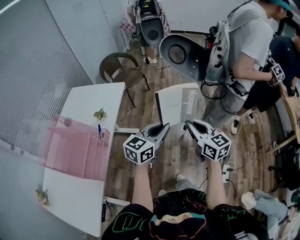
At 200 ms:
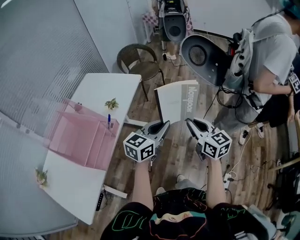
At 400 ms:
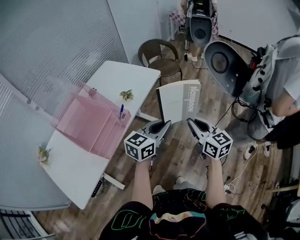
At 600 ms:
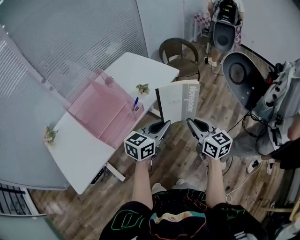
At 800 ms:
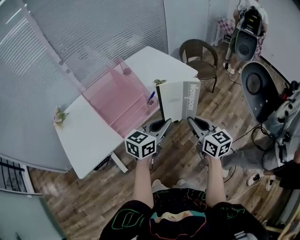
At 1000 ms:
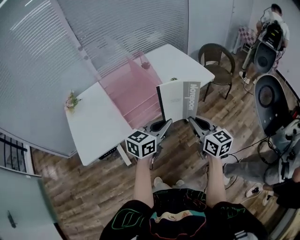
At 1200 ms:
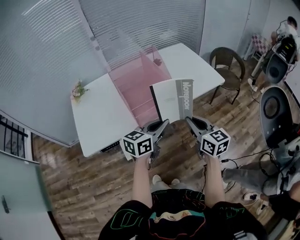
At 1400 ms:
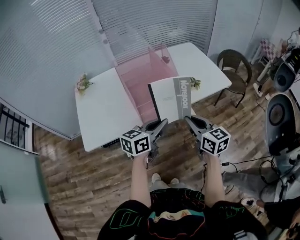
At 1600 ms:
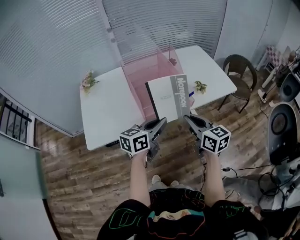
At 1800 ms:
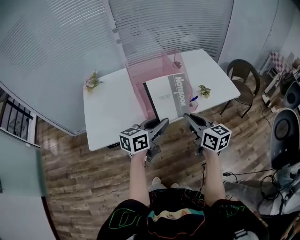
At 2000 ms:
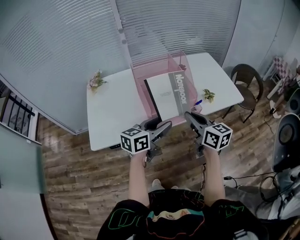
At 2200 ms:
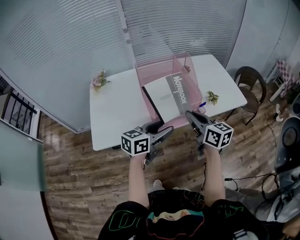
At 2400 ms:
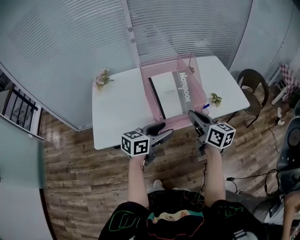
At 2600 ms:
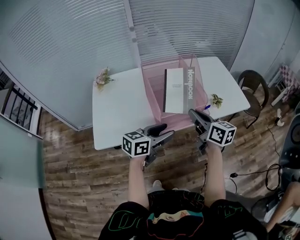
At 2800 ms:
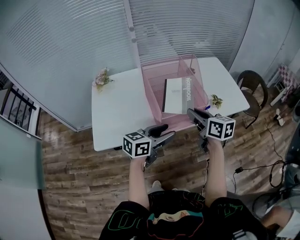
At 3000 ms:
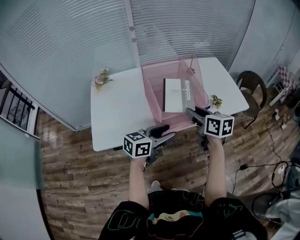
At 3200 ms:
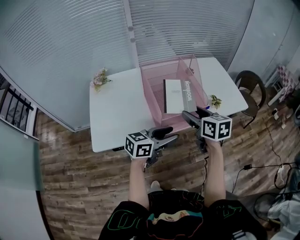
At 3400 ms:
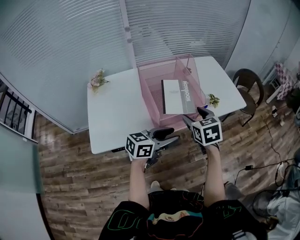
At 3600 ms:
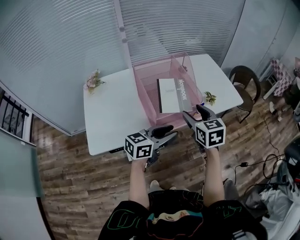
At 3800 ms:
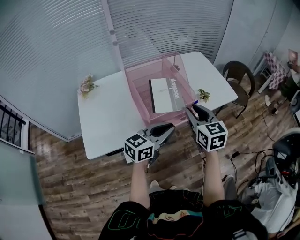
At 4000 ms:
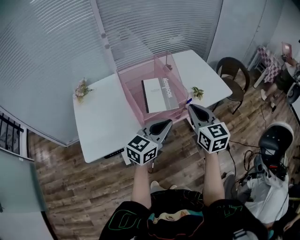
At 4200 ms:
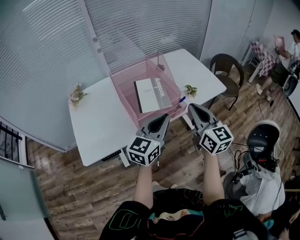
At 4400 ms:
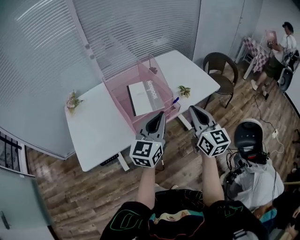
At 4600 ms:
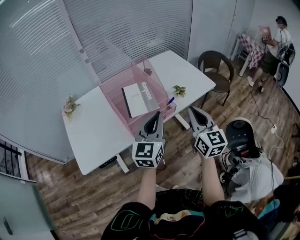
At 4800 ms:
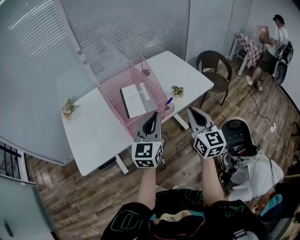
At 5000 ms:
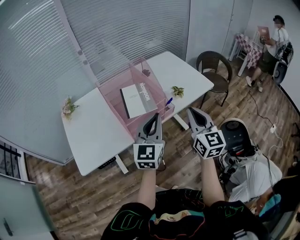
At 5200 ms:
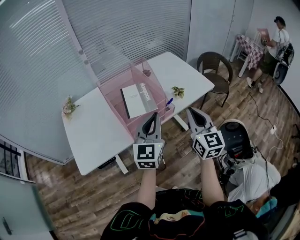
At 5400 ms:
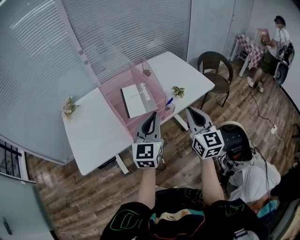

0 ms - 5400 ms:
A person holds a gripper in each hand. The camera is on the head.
0 ms - 1400 ms: The left gripper shifts by about 35 cm, and turns by some 60 degrees, while the right gripper changes place by roughly 35 cm, and changes its angle by approximately 60 degrees.
1400 ms - 2800 ms: The left gripper moves to the left, some 10 cm, and opens its fingers, while the right gripper is displaced forward and to the left by approximately 15 cm.
2800 ms - 4000 ms: The left gripper goes approximately 5 cm upward and to the right, and closes. The right gripper goes approximately 5 cm to the right, rotates approximately 30 degrees, and opens, then closes again.
4000 ms - 5400 ms: The right gripper goes approximately 10 cm to the right, while the left gripper turns by roughly 30 degrees.

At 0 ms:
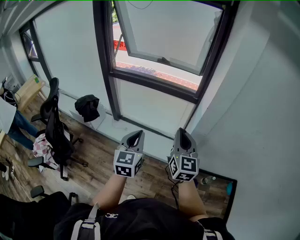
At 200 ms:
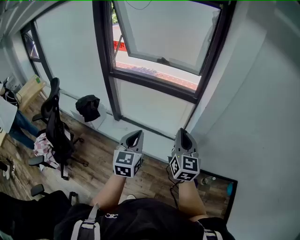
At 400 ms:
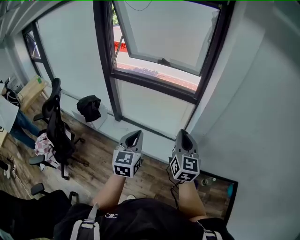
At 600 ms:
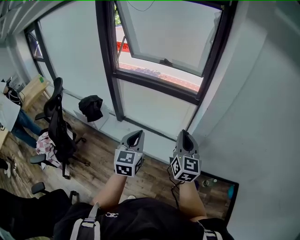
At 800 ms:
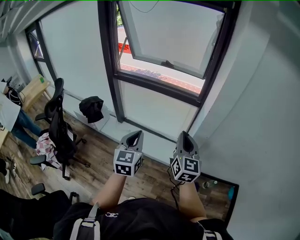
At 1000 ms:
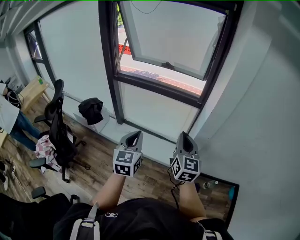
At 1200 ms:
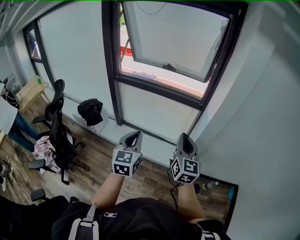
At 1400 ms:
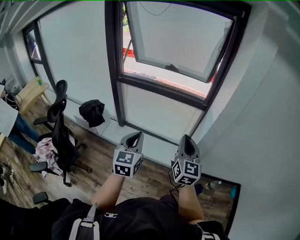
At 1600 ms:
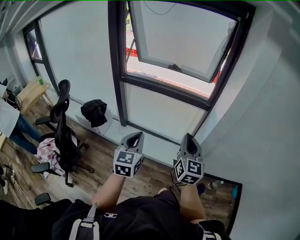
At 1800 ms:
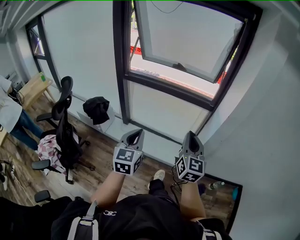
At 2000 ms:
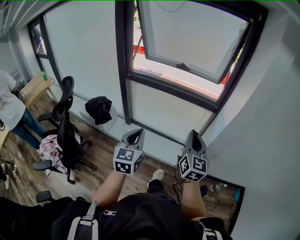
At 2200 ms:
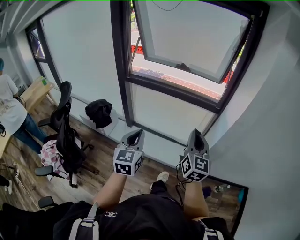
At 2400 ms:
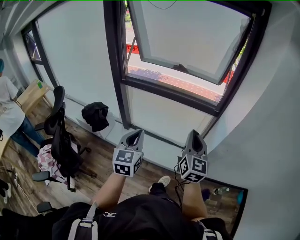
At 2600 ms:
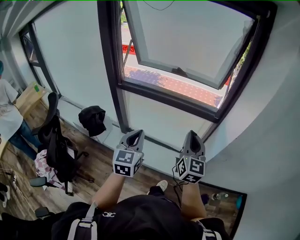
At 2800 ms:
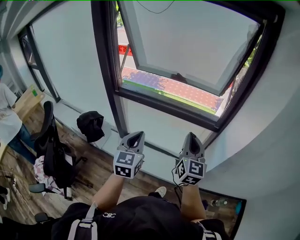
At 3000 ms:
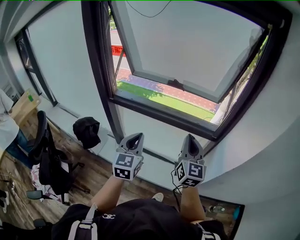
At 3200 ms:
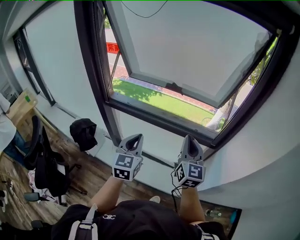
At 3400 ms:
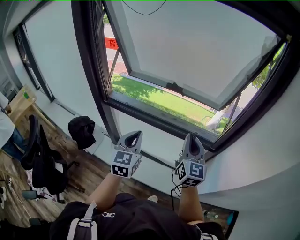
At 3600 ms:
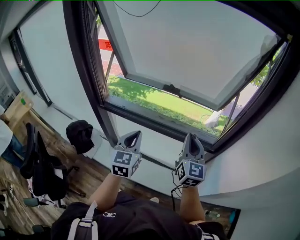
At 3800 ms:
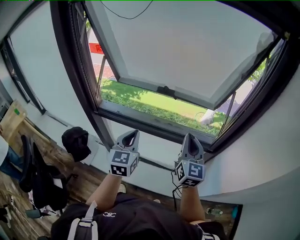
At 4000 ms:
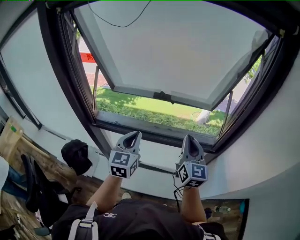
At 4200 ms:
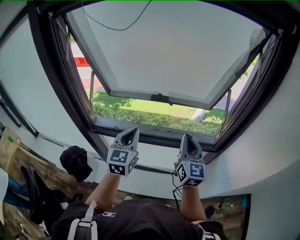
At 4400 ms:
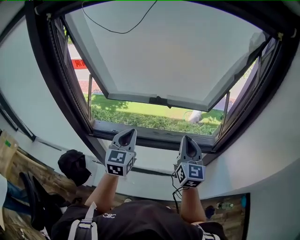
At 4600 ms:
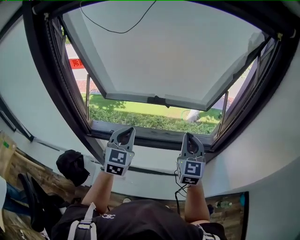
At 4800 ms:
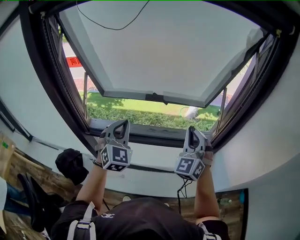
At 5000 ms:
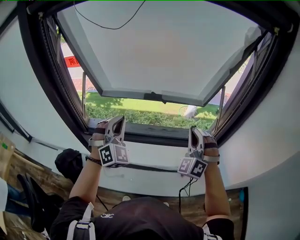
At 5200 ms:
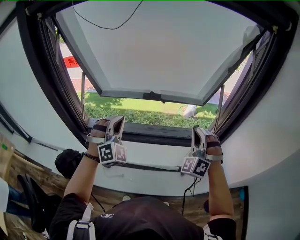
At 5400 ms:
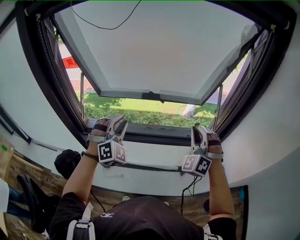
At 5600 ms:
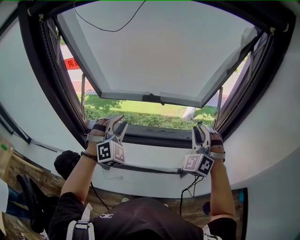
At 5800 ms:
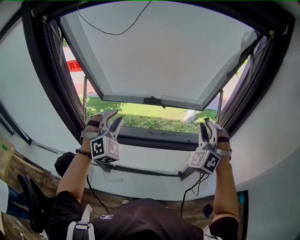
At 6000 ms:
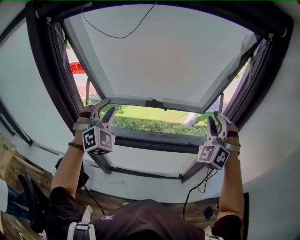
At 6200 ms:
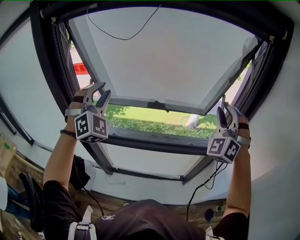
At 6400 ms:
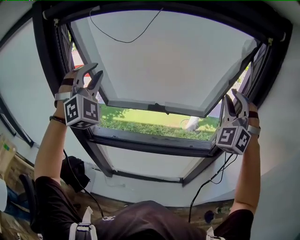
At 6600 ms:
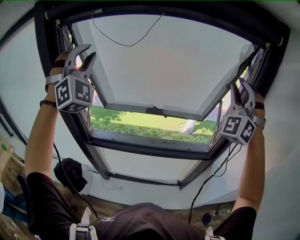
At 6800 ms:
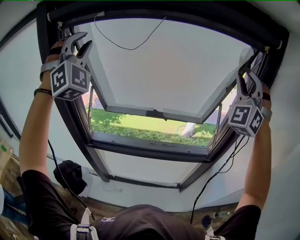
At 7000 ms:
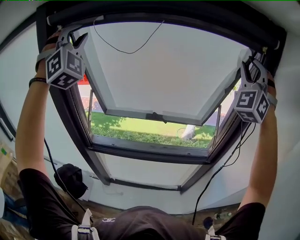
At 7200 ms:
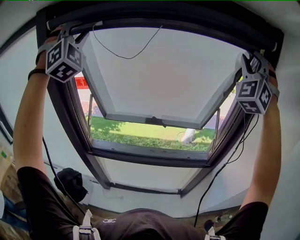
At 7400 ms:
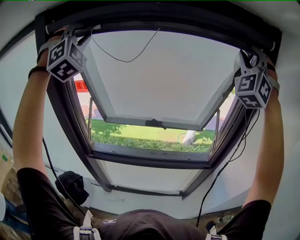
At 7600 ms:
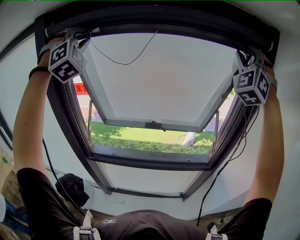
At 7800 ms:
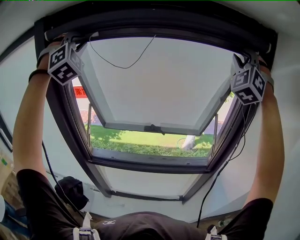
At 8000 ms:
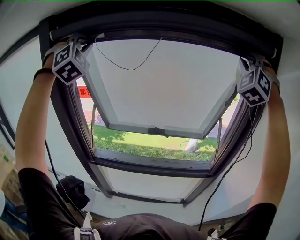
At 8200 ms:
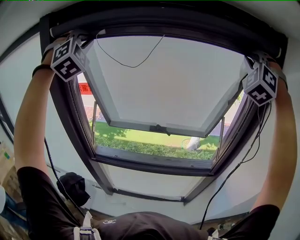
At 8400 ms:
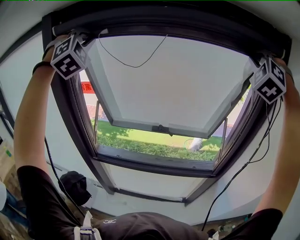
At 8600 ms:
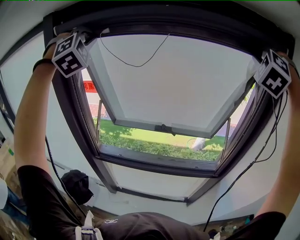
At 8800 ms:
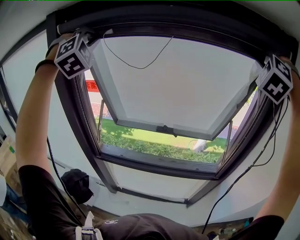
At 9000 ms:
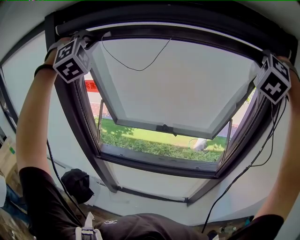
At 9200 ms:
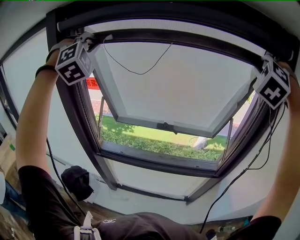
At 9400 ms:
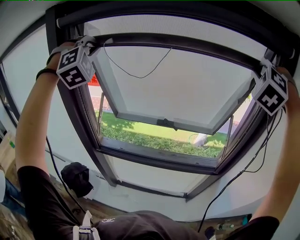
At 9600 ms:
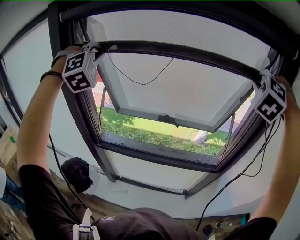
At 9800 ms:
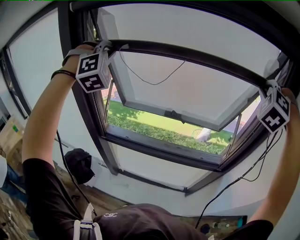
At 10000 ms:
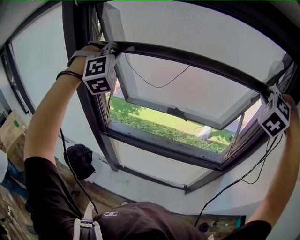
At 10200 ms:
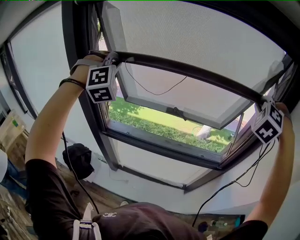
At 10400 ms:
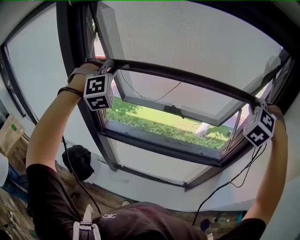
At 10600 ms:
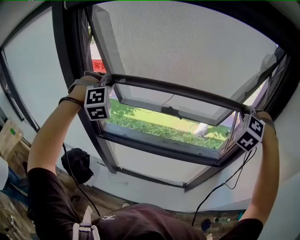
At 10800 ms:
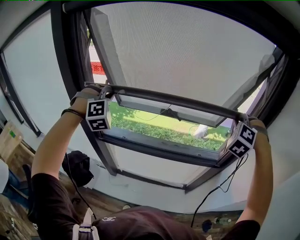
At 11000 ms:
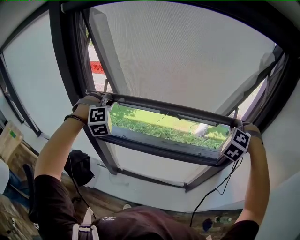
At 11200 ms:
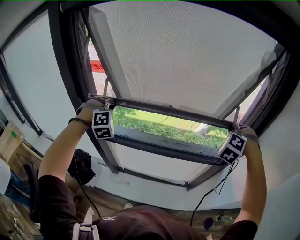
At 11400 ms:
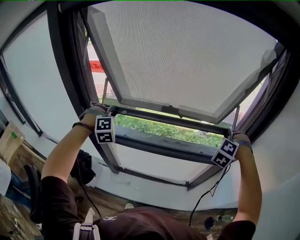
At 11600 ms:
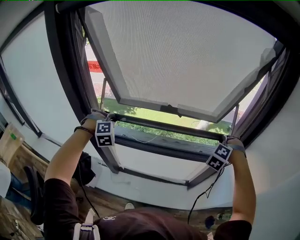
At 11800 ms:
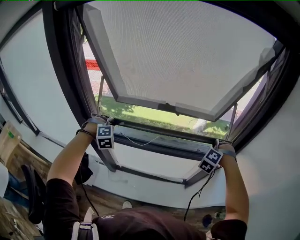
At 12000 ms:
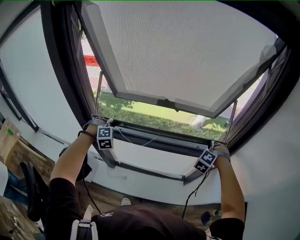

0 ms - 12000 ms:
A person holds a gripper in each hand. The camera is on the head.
0 ms - 1600 ms: Both grippers move to the left, approximately 10 cm.
1600 ms - 3000 ms: Both grippers travel together forward, about 35 cm.
3000 ms - 4400 ms: Both grippers move forward, roughly 20 cm.
4400 ms - 6000 ms: The left gripper shifts roughly 15 cm upward and to the left, rolls clockwise, seen from behind, by approximately 60 degrees, and opens its fingers. The right gripper goes roughly 15 cm upward and to the right, rotates around the line of its fingers by approximately 70 degrees, counterclockwise from behind, and opens up.
6000 ms - 7600 ms: The two grippers go some 35 cm upward. The right gripper swivels about 20 degrees, while the left gripper rotates roughly 30 degrees.
7600 ms - 9000 ms: The right gripper turns by approximately 30 degrees.
9000 ms - 10400 ms: Both grippers travel together downward, about 20 cm.
10400 ms - 12000 ms: Both grippers move downward, approximately 35 cm. The left gripper tips its fingers downward by about 30 degrees.

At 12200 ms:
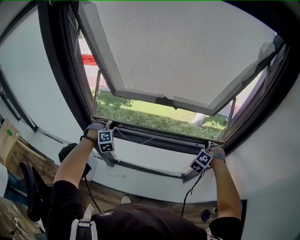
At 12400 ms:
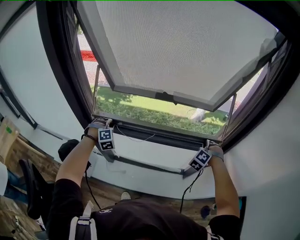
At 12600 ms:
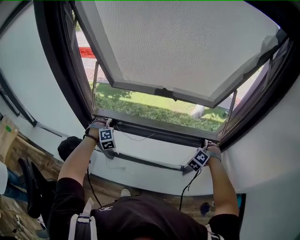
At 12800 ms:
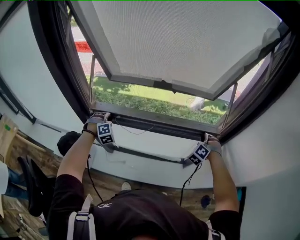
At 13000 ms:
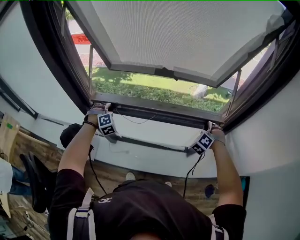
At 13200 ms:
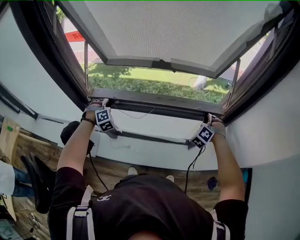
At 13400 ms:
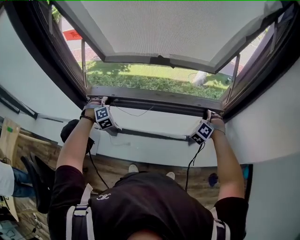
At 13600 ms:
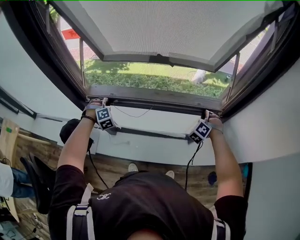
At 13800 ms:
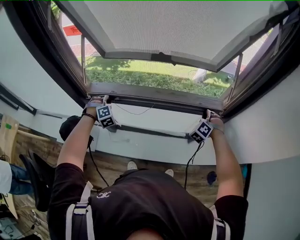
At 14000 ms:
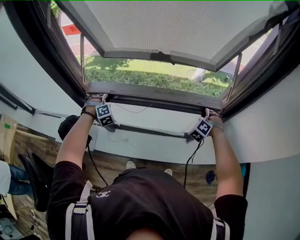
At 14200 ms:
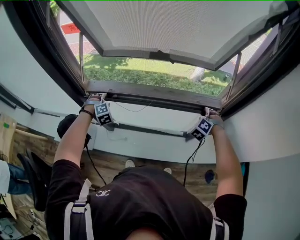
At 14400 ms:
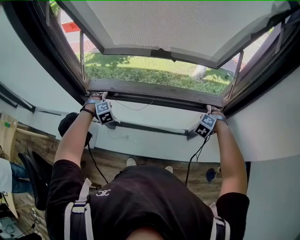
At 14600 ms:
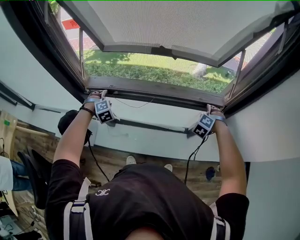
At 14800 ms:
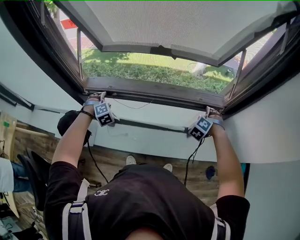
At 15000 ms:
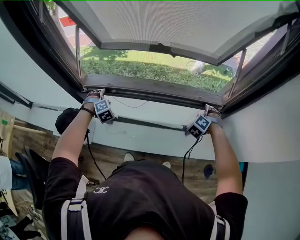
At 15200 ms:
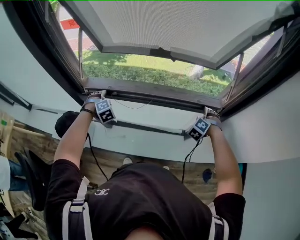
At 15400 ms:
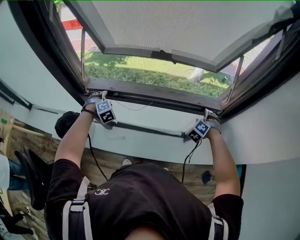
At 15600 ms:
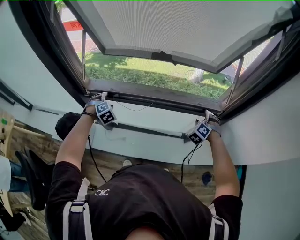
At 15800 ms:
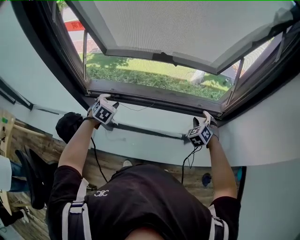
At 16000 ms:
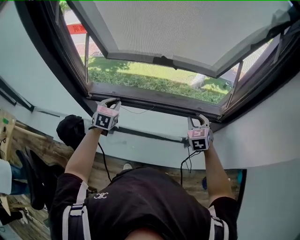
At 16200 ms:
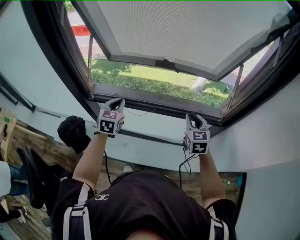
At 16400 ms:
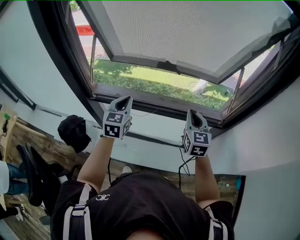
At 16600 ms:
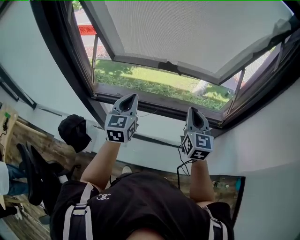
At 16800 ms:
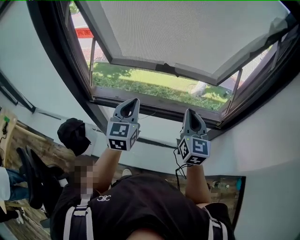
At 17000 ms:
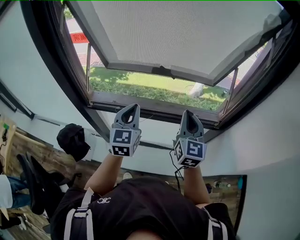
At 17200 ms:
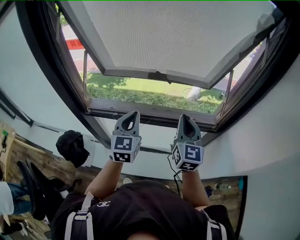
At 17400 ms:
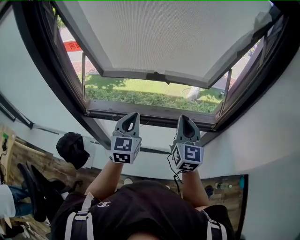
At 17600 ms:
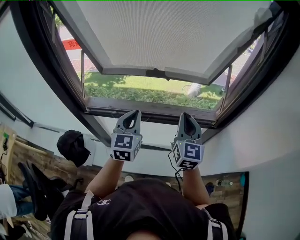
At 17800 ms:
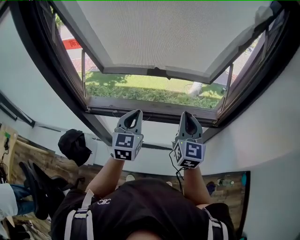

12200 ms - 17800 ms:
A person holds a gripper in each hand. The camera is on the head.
12200 ms - 13600 ms: Both grippers move downward, roughly 10 cm.
13600 ms - 15000 ms: The right gripper opens up. The left gripper opens its fingers.
15000 ms - 16400 ms: The left gripper shifts roughly 25 cm upward and to the right, tilts its fingers roughly 40 degrees upward, and closes its fingers, while the right gripper heads upward and to the left, covering roughly 25 cm, tilts its fingers some 30 degrees upward, and closes its fingers.
16400 ms - 17800 ms: The right gripper is displaced upward by some 5 cm; the left gripper shifts approximately 10 cm to the right.
